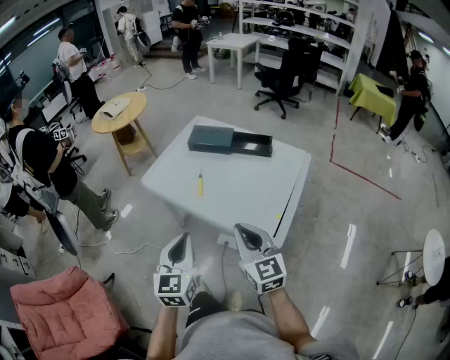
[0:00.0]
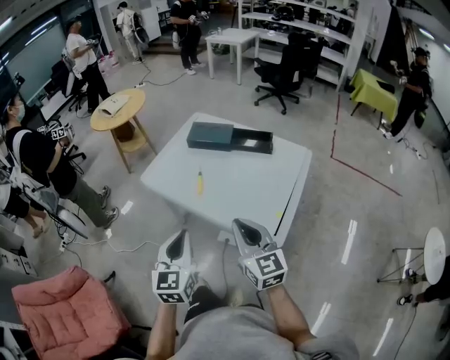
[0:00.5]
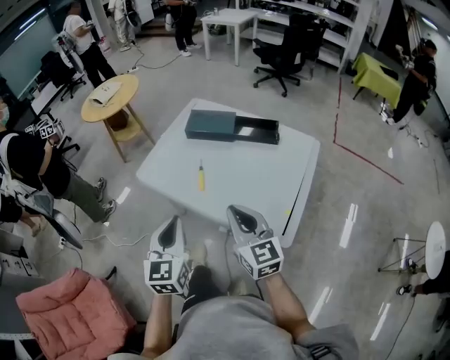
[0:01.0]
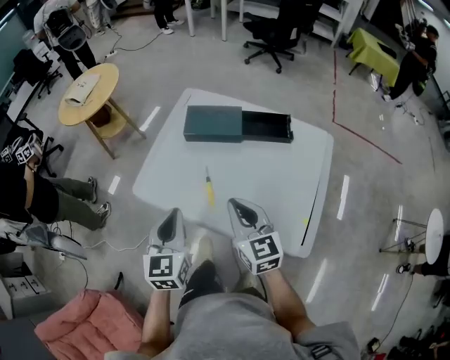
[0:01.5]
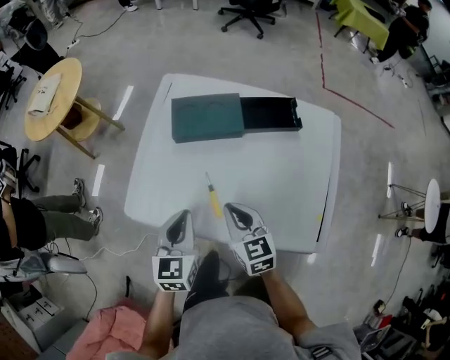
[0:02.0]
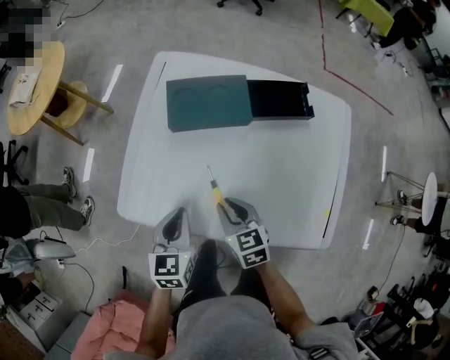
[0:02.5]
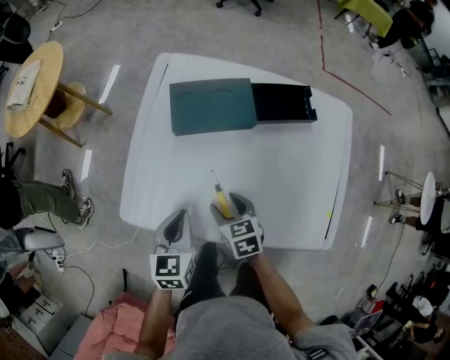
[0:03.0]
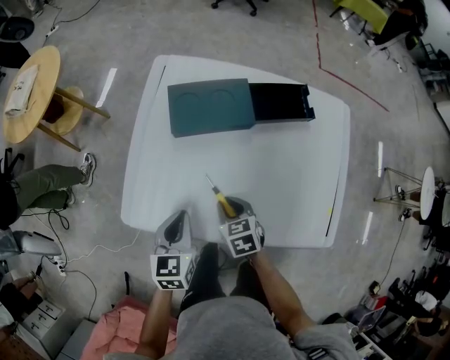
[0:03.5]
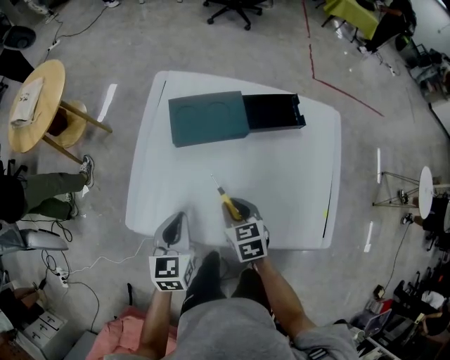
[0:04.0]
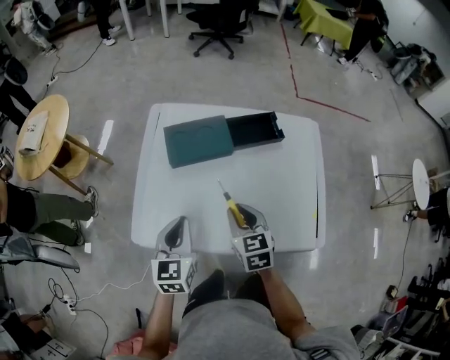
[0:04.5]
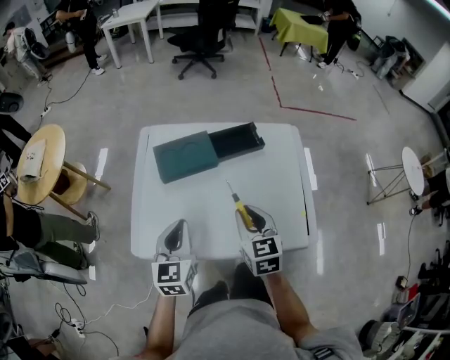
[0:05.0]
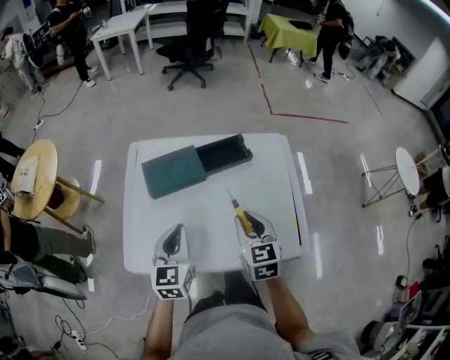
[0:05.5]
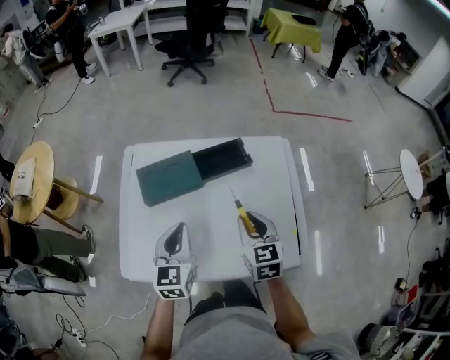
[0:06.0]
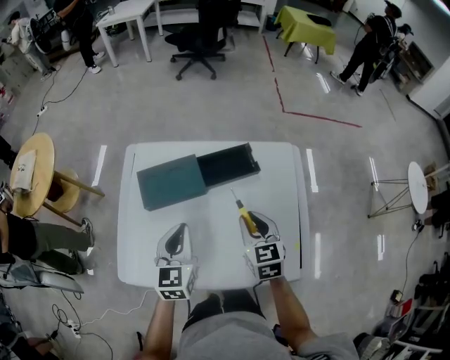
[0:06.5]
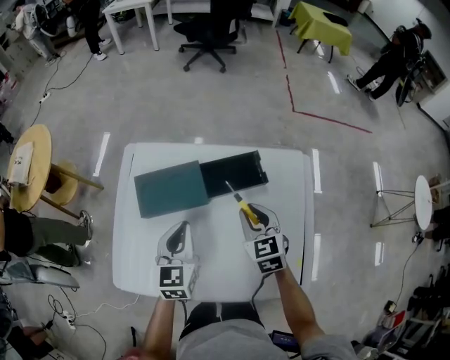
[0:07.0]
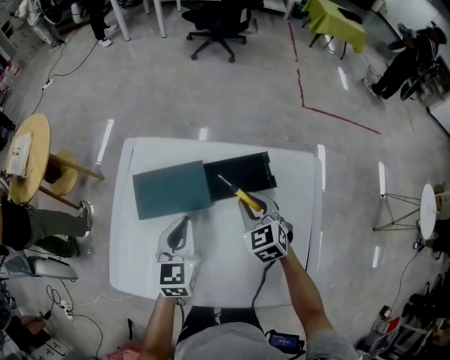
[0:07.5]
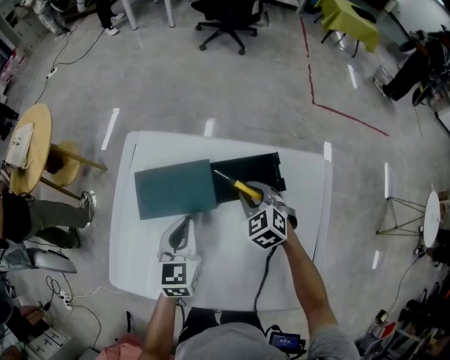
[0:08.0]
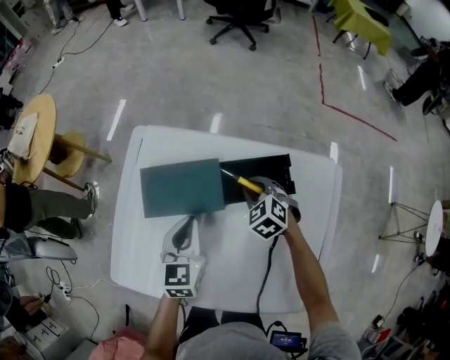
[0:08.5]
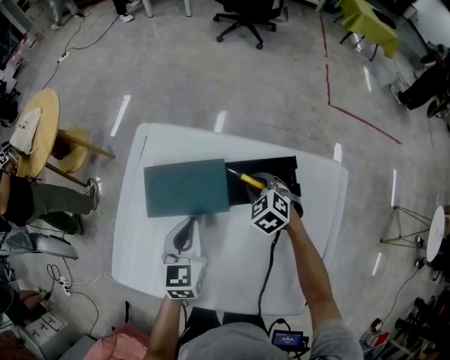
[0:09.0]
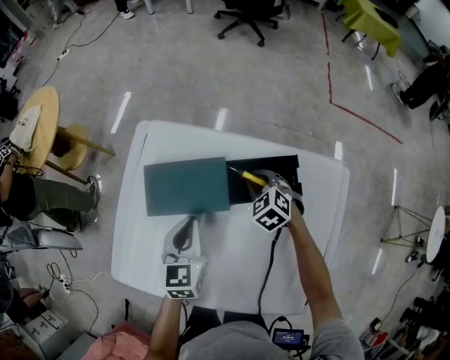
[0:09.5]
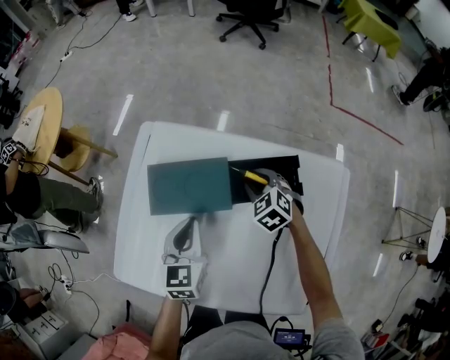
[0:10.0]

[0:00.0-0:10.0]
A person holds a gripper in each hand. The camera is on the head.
0:00.0 to 0:02.0: The two grippers go about 40 cm forward and downward. The left gripper changes its angle by roughly 20 degrees. Meanwhile the right gripper turns by about 30 degrees.
0:02.0 to 0:04.0: The left gripper is displaced downward by roughly 5 cm. The right gripper goes roughly 10 cm downward, and opens, then closes again.
0:04.0 to 0:06.0: The left gripper is displaced to the right, upward and forward by roughly 20 cm; the right gripper heads to the right and upward, covering some 25 cm, and swivels some 30 degrees.
0:06.0 to 0:08.0: The right gripper goes about 25 cm forward and downward, and swivels some 40 degrees. Meanwhile the left gripper heads forward and downward, covering roughly 20 cm.
0:08.0 to 0:10.0: The right gripper changes place by roughly 5 cm.

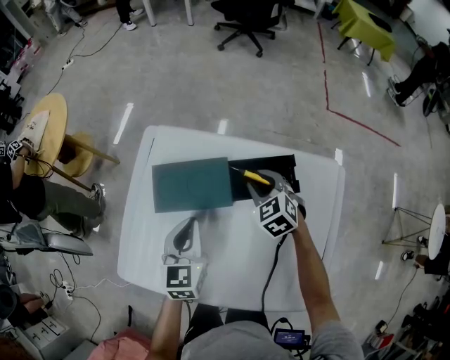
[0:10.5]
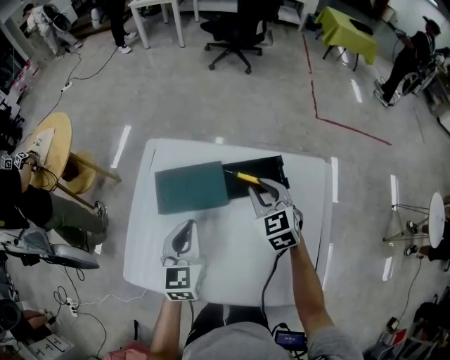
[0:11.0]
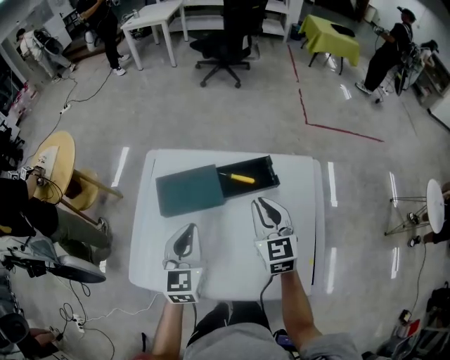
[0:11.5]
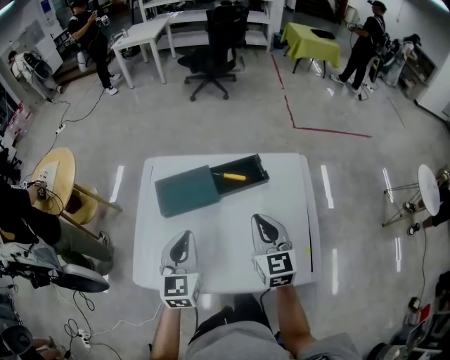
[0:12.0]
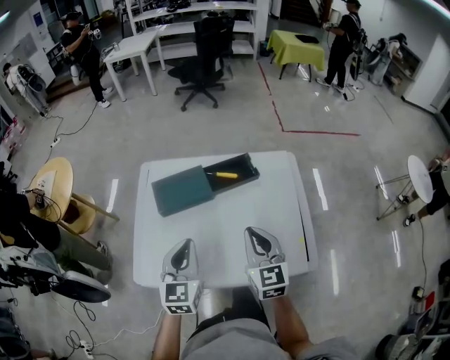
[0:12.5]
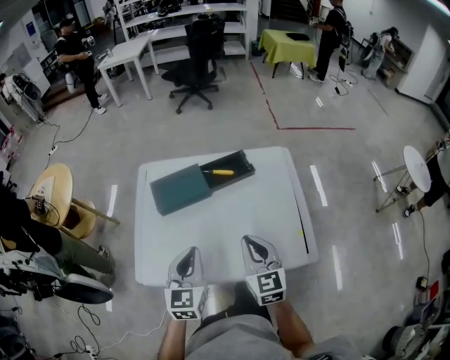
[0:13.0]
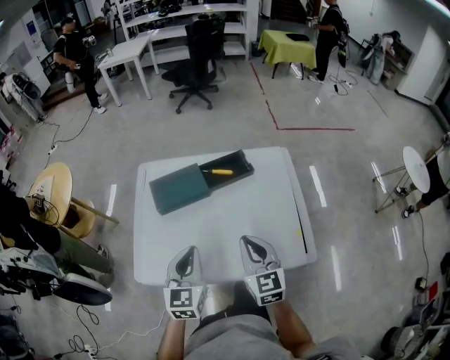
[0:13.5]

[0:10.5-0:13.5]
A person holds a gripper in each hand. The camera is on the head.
0:10.5 to 0:12.0: The right gripper travels backward and upward by roughly 30 cm, points its fingers some 30 degrees further upward, and closes up. The left gripper travels upward and backward by about 15 cm.
0:12.0 to 0:13.5: Both grippers travel together backward, roughly 10 cm.

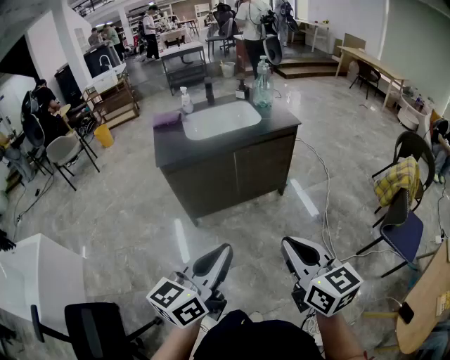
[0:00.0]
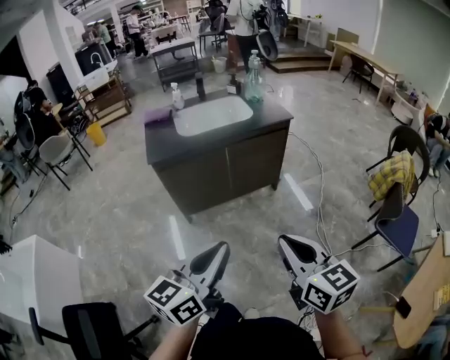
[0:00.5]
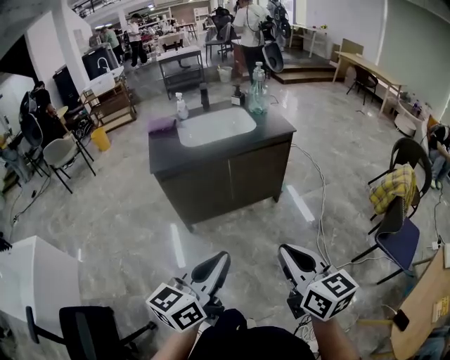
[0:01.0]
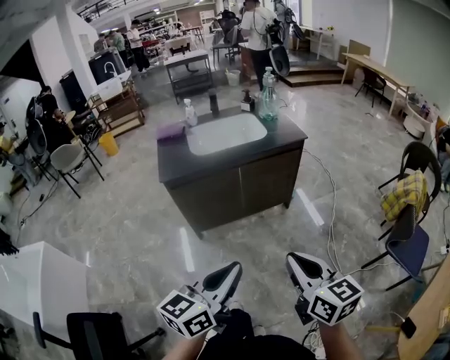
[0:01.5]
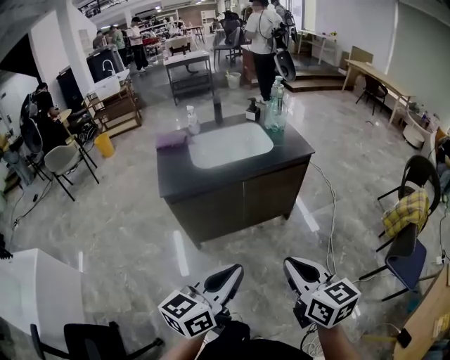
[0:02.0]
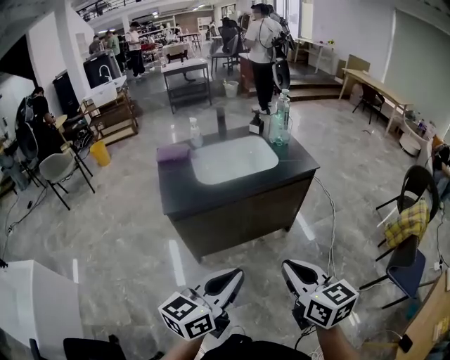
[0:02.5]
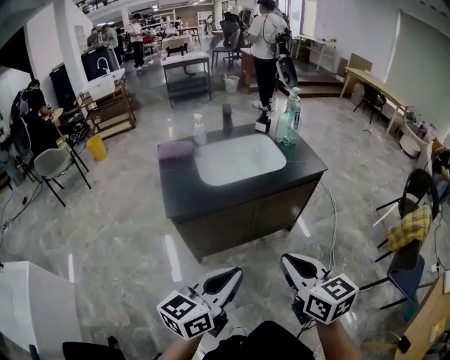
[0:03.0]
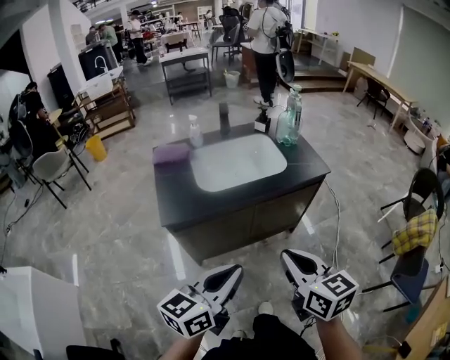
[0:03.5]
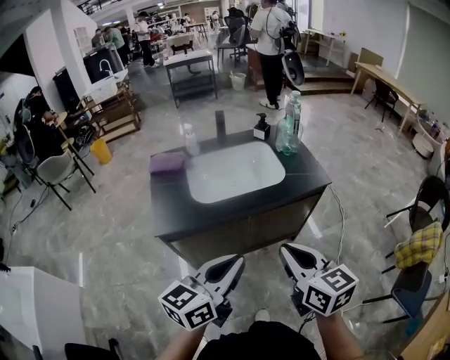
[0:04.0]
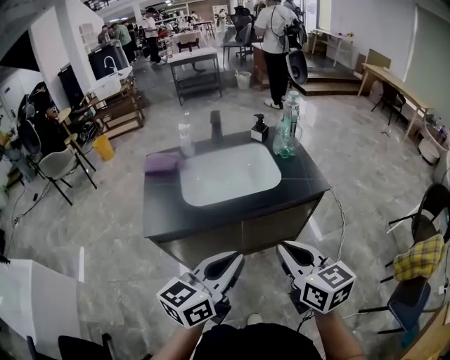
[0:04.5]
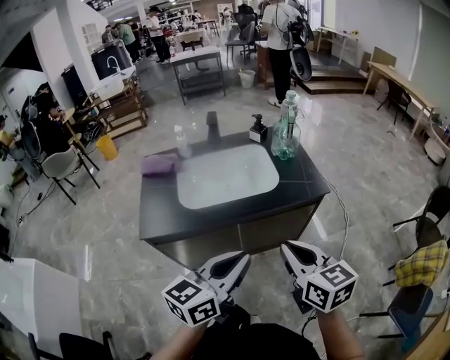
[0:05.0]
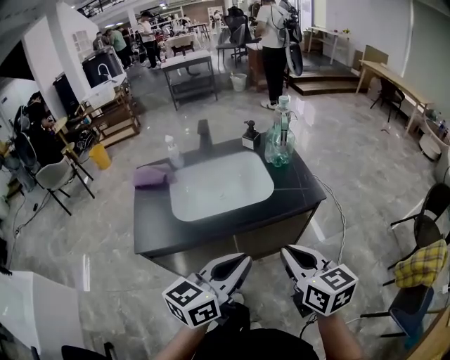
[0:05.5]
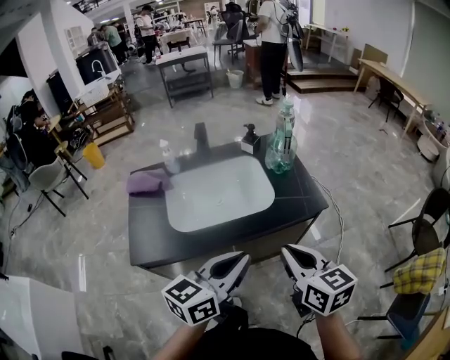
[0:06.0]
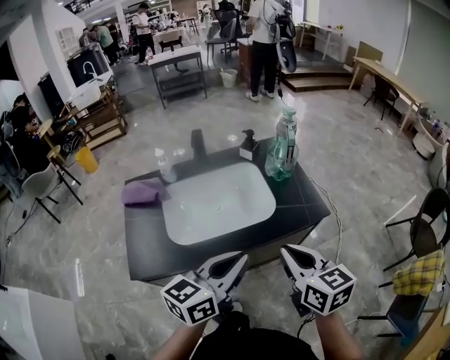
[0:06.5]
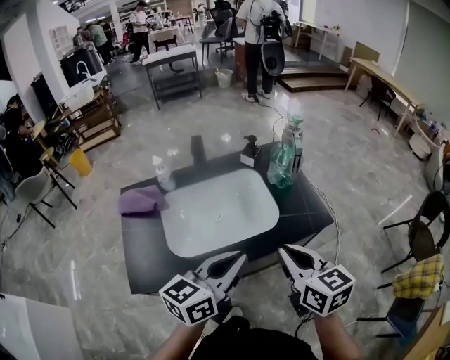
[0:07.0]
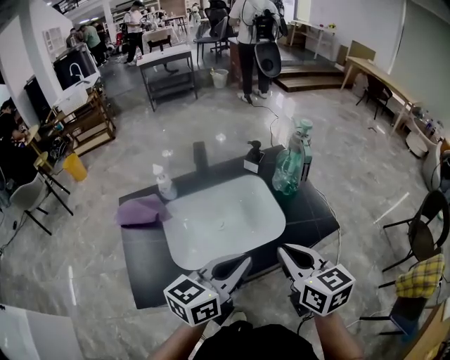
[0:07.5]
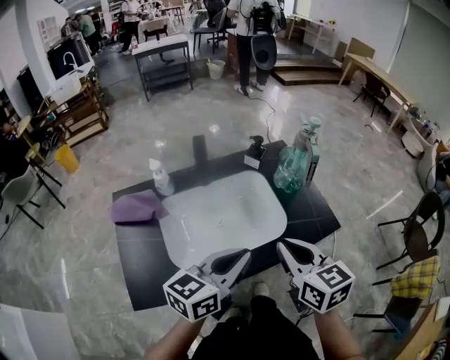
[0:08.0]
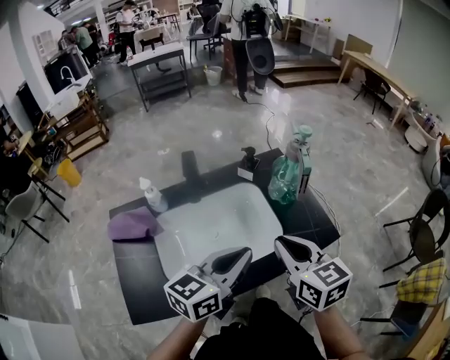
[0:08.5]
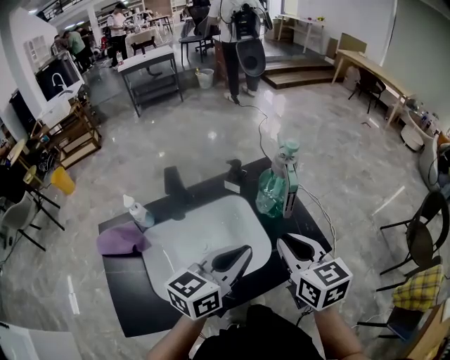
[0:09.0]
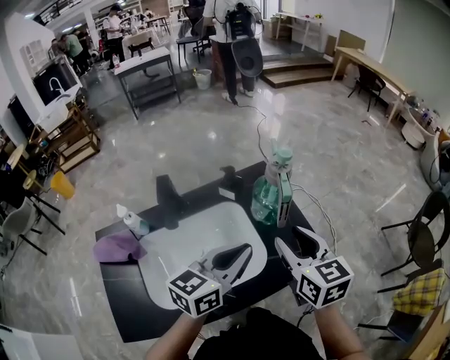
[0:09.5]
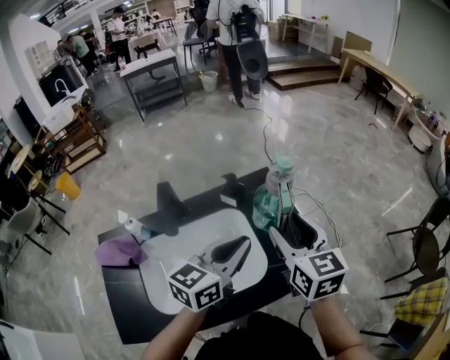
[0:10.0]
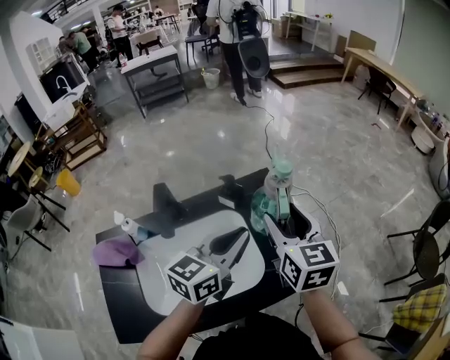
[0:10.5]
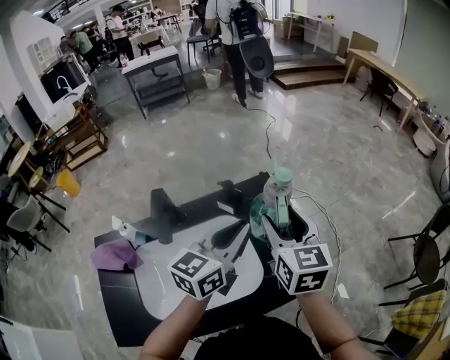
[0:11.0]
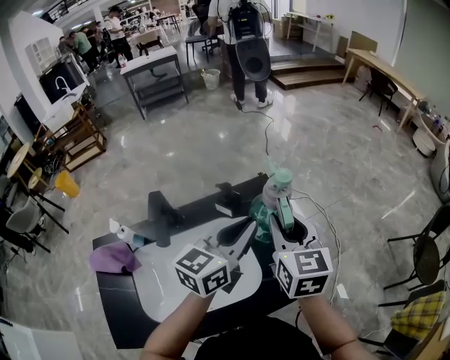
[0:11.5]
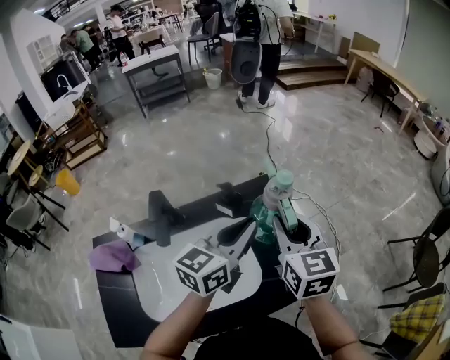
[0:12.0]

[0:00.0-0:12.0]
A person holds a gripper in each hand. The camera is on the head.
0:00.0 to 0:02.0: Both grippers travel together forward, about 10 cm.
0:02.0 to 0:04.0: The grippers both shift forward by some 25 cm.
0:04.0 to 0:06.0: The grippers both shift forward and to the right by approximately 20 cm.
0:06.0 to 0:08.0: The grippers both shift forward and to the left by roughly 20 cm.
0:08.0 to 0:10.0: Both grippers move forward, roughly 20 cm. The right gripper opens its fingers.
0:10.0 to 0:12.0: The grippers both shift forward by roughly 10 cm. The right gripper closes up.

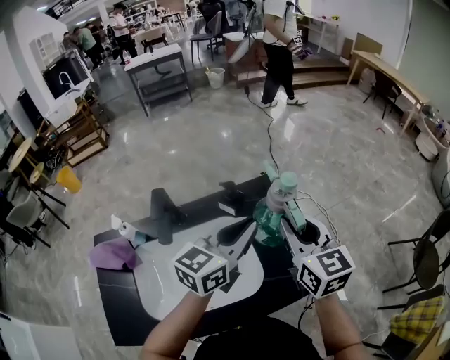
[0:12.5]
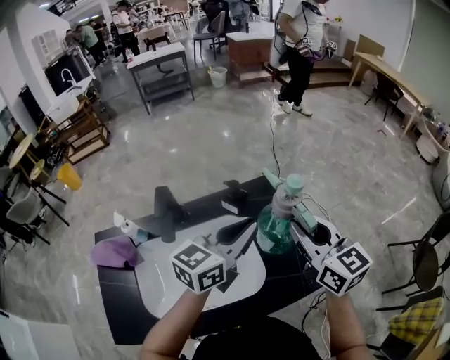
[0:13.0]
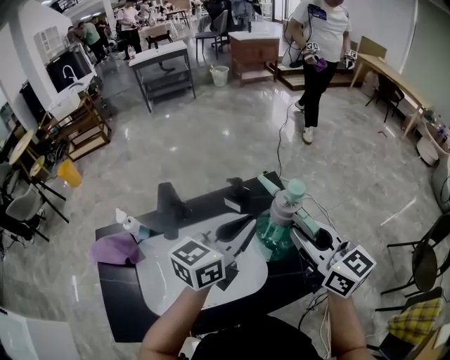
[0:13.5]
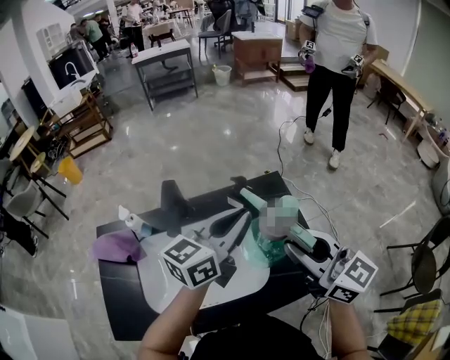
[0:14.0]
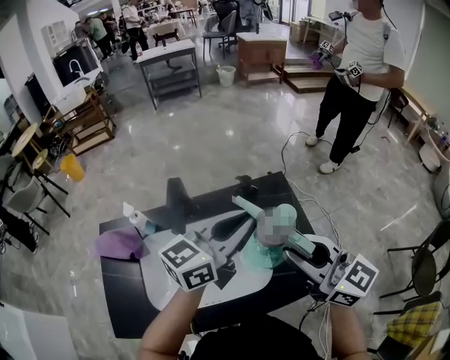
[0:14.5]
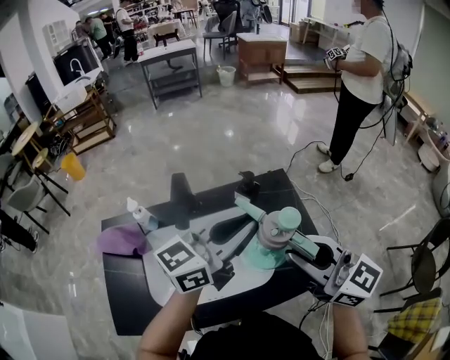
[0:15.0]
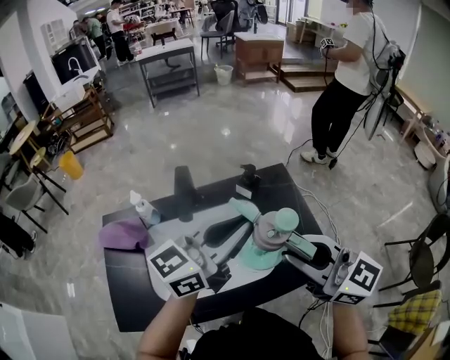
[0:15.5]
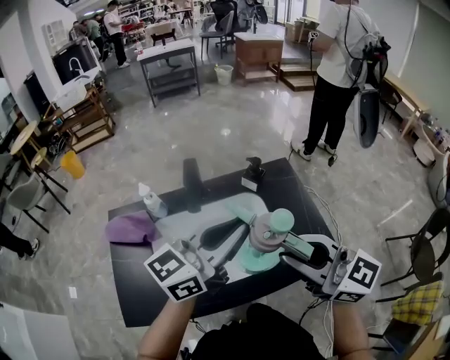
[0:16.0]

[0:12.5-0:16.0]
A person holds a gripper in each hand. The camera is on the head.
0:12.5 to 0:14.5: The right gripper heads backward and to the left, covering approximately 10 cm, and changes its angle by about 30 degrees; the left gripper shifts roughly 5 cm to the left.
0:14.5 to 0:16.0: Both grippers move backward and to the left, approximately 10 cm.
